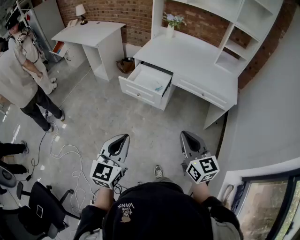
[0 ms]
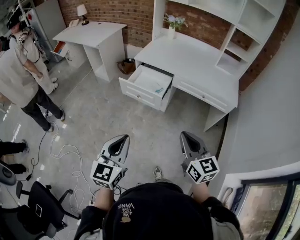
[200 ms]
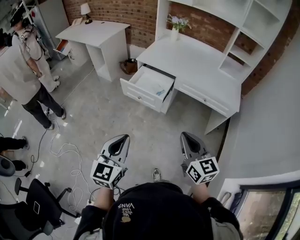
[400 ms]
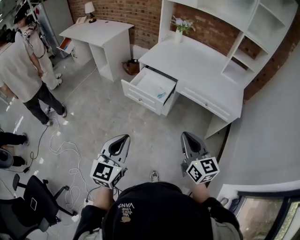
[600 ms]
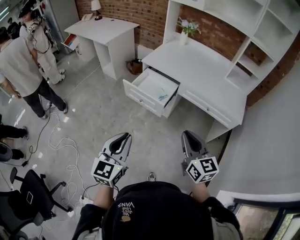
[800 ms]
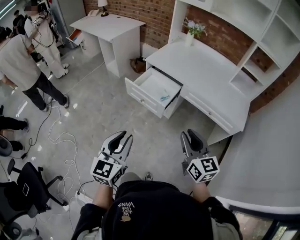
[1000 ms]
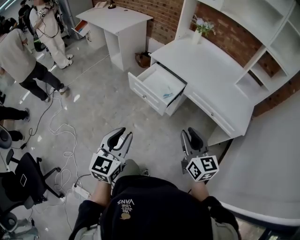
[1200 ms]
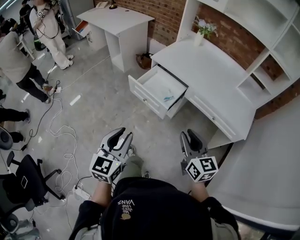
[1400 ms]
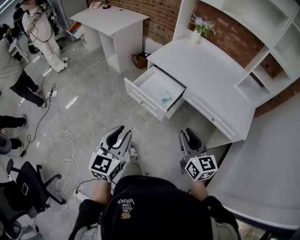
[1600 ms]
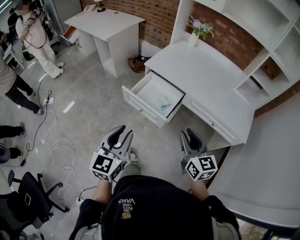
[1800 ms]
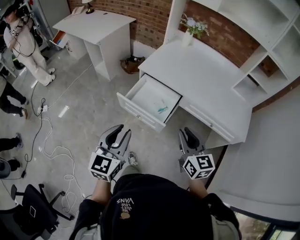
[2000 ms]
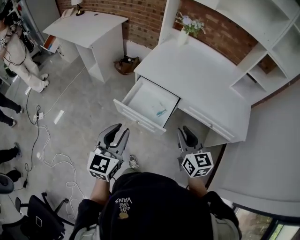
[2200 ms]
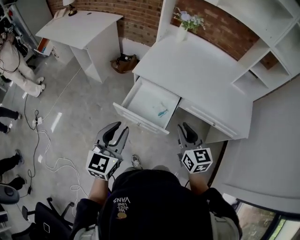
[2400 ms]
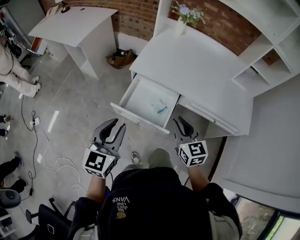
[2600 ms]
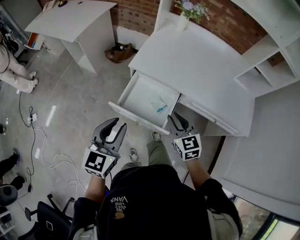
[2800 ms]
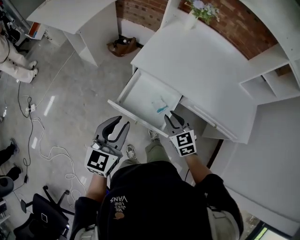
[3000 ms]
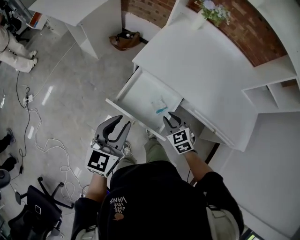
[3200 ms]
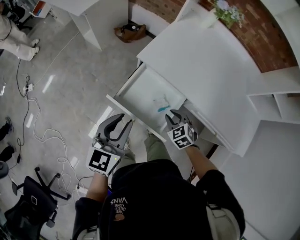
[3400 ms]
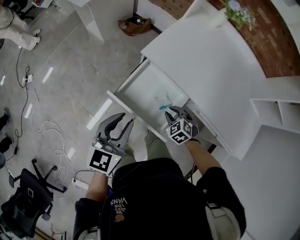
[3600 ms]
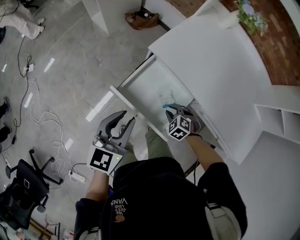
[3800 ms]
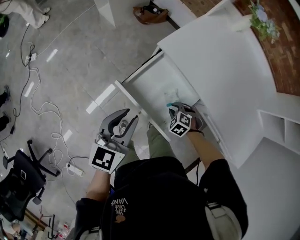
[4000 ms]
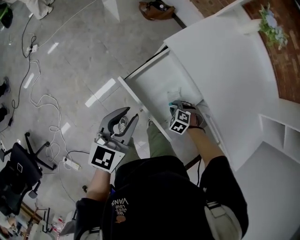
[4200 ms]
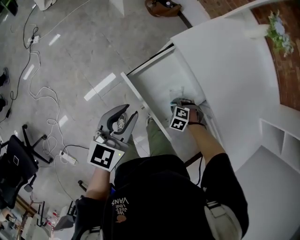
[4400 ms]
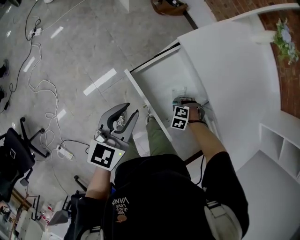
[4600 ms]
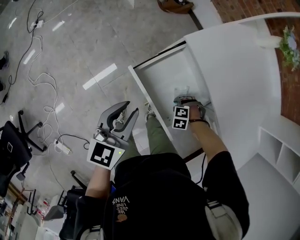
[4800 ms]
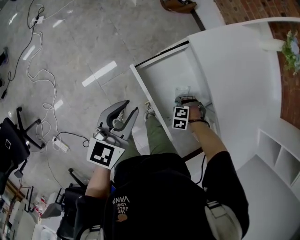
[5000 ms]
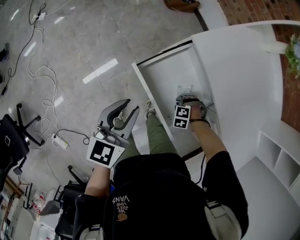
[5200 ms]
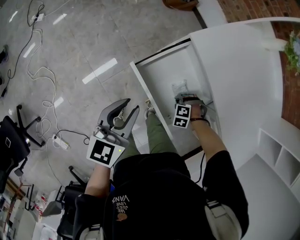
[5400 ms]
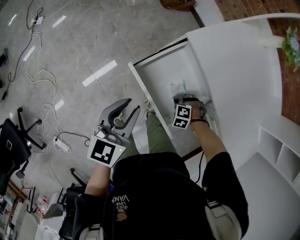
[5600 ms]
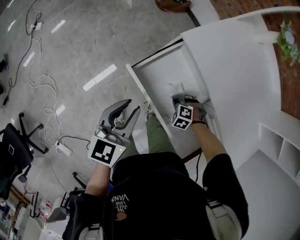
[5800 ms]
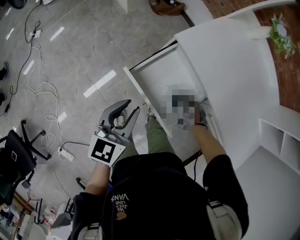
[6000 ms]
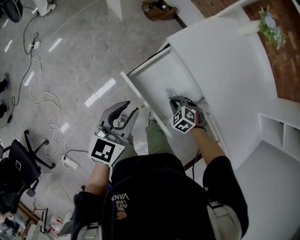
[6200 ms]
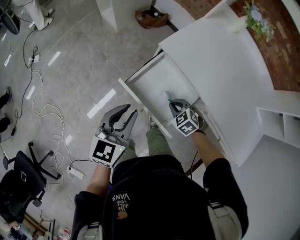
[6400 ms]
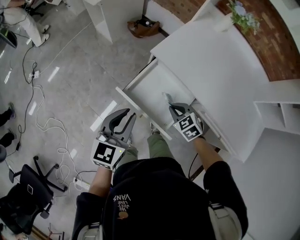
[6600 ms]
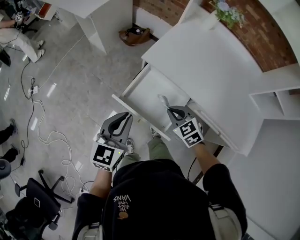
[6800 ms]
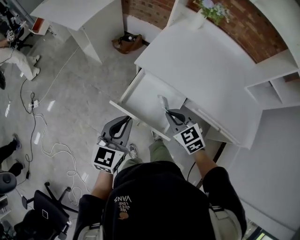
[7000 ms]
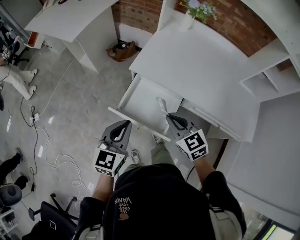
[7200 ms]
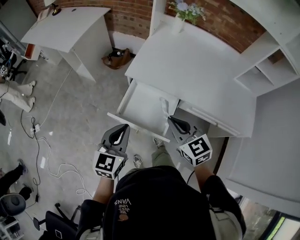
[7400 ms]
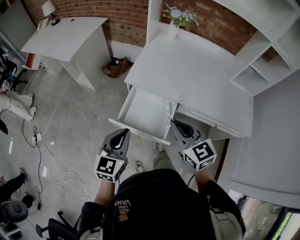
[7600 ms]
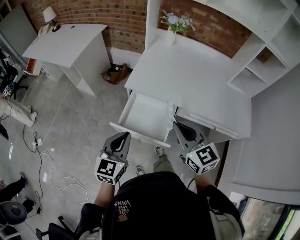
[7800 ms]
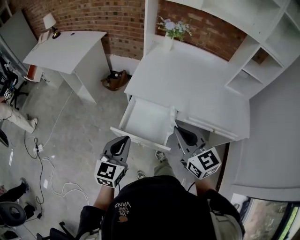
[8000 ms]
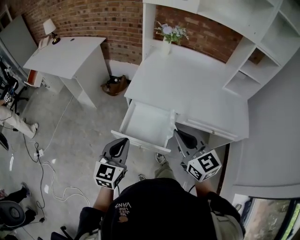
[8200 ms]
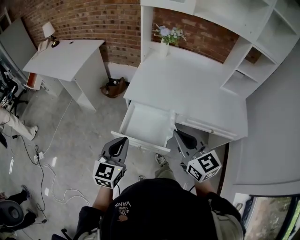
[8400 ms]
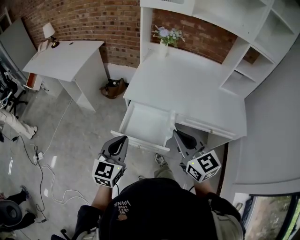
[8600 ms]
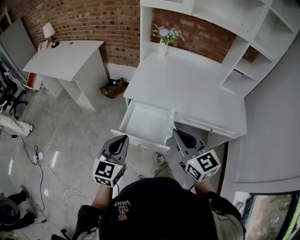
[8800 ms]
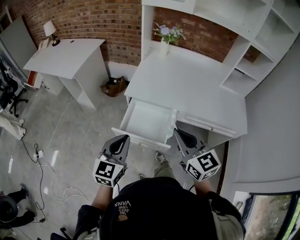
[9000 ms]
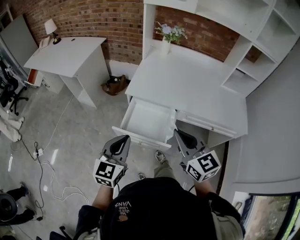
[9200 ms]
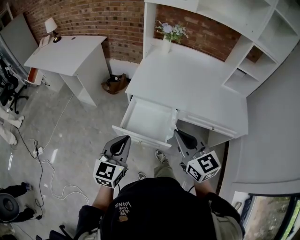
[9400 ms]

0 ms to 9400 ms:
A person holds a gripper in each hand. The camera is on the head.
0 ms to 1600 ms: The grippers both shift forward by approximately 20 cm. The right gripper opens its fingers; the left gripper opens up.
1600 ms to 3200 ms: The left gripper moves forward, roughly 35 cm. Meanwhile the right gripper heads forward and downward, covering approximately 40 cm, and tips its fingers downward by roughly 30 degrees.
3200 ms to 4800 ms: The right gripper travels downward by roughly 25 cm, and angles its fingers downward, by roughly 40 degrees; the left gripper moves downward, approximately 10 cm, and turns by roughly 30 degrees.
4800 ms to 6200 ms: The right gripper is displaced upward by roughly 10 cm, turns by some 40 degrees, and closes.
6200 ms to 7800 ms: The right gripper is displaced upward by some 35 cm, and angles its fingers upward, by roughly 60 degrees; the left gripper heads upward, covering roughly 10 cm, swivels roughly 20 degrees, and closes its fingers.
7800 ms to 9400 ms: The left gripper shifts by approximately 5 cm, while the right gripper is displaced backward by roughly 5 cm.

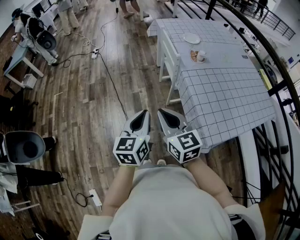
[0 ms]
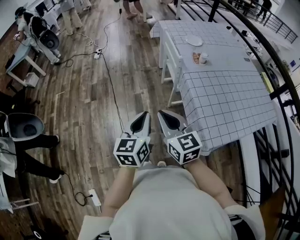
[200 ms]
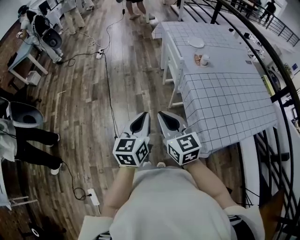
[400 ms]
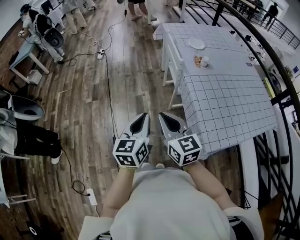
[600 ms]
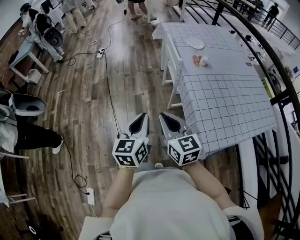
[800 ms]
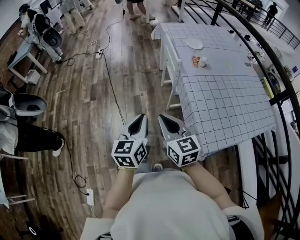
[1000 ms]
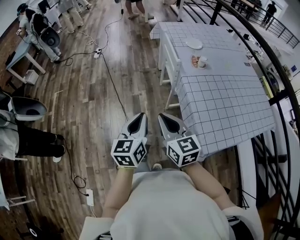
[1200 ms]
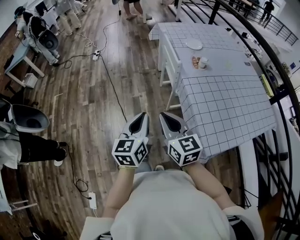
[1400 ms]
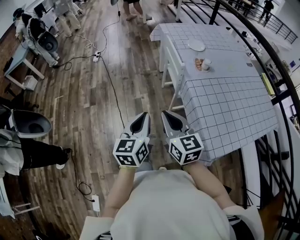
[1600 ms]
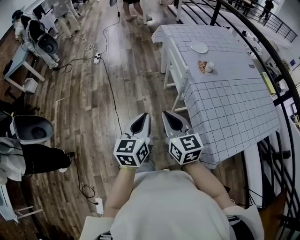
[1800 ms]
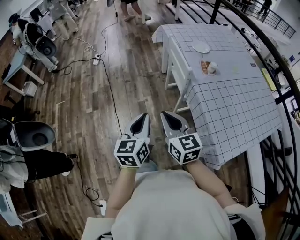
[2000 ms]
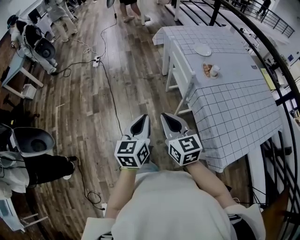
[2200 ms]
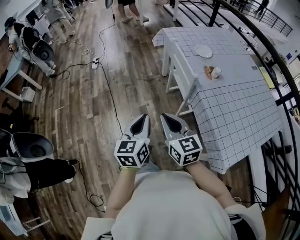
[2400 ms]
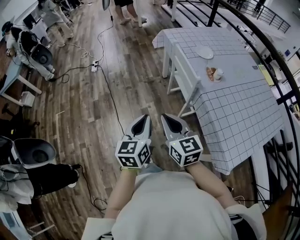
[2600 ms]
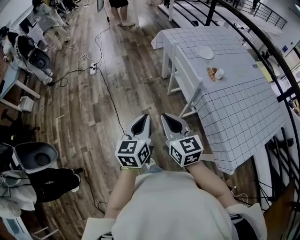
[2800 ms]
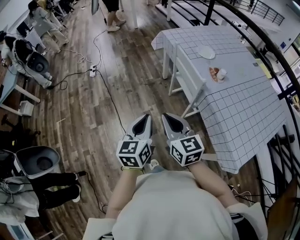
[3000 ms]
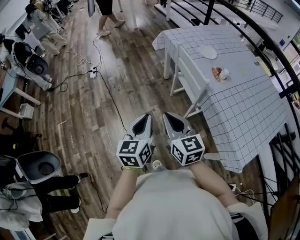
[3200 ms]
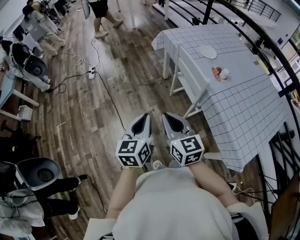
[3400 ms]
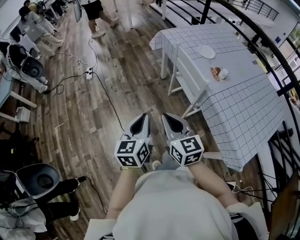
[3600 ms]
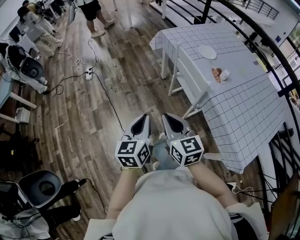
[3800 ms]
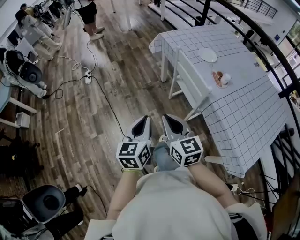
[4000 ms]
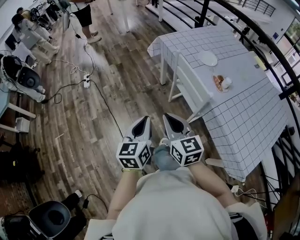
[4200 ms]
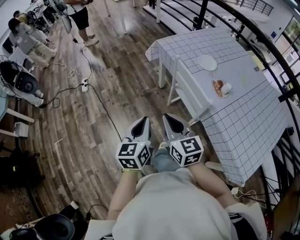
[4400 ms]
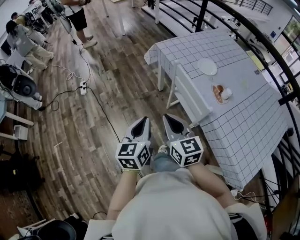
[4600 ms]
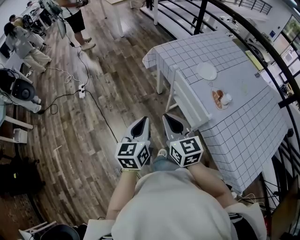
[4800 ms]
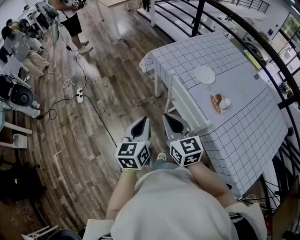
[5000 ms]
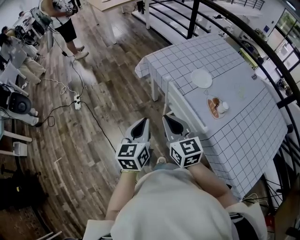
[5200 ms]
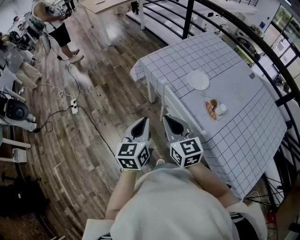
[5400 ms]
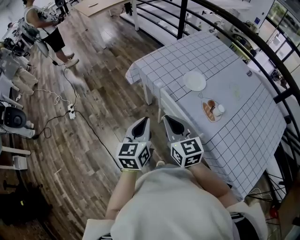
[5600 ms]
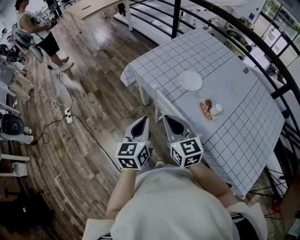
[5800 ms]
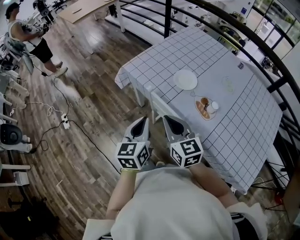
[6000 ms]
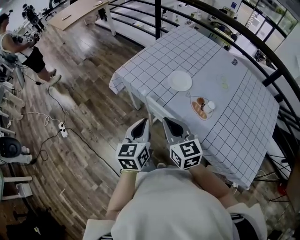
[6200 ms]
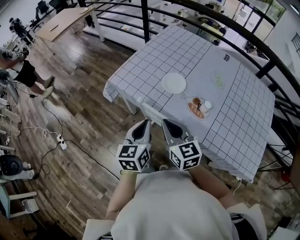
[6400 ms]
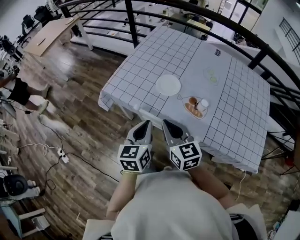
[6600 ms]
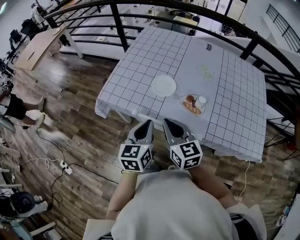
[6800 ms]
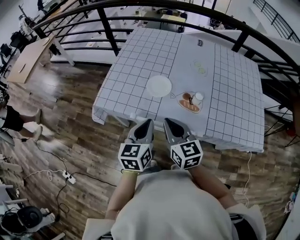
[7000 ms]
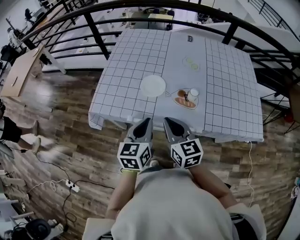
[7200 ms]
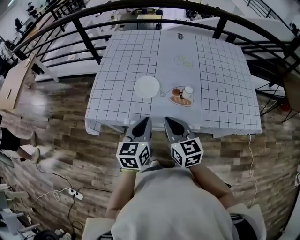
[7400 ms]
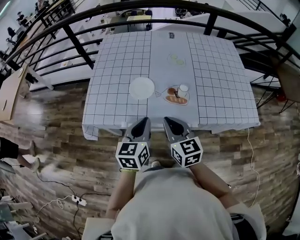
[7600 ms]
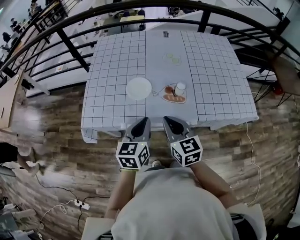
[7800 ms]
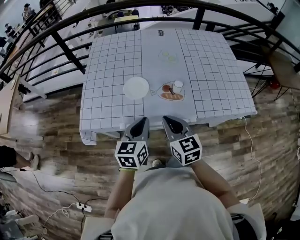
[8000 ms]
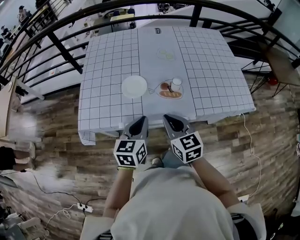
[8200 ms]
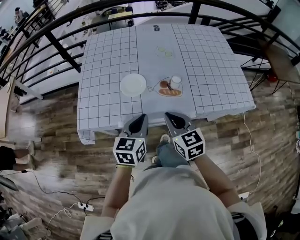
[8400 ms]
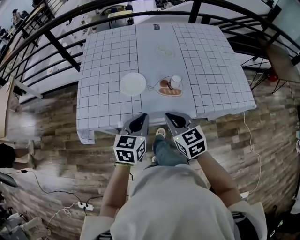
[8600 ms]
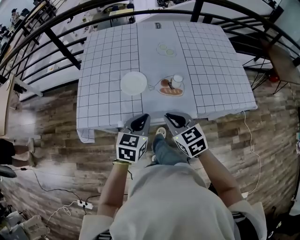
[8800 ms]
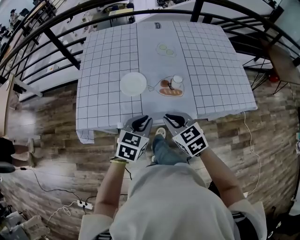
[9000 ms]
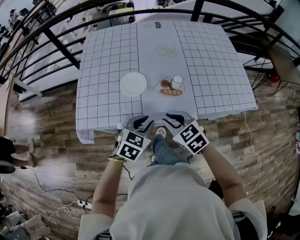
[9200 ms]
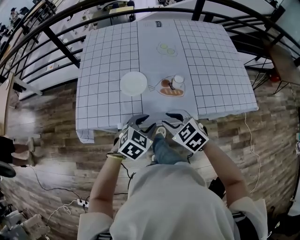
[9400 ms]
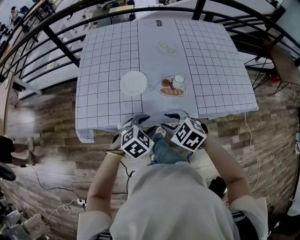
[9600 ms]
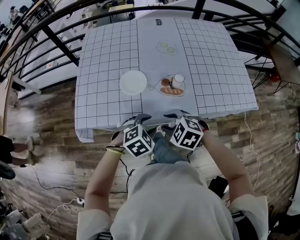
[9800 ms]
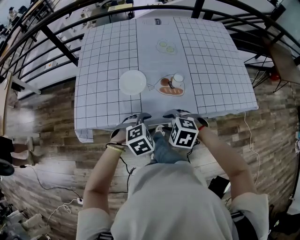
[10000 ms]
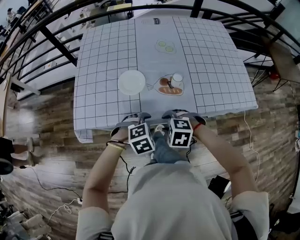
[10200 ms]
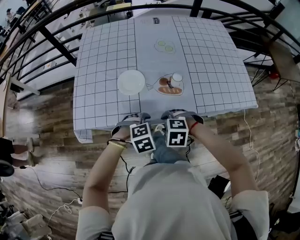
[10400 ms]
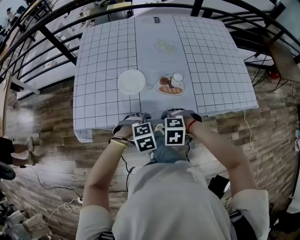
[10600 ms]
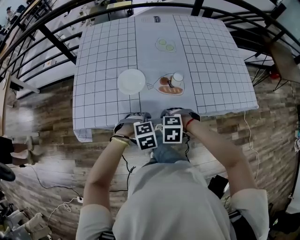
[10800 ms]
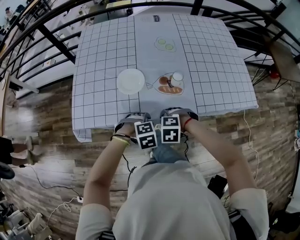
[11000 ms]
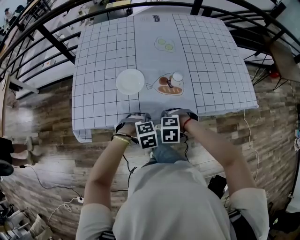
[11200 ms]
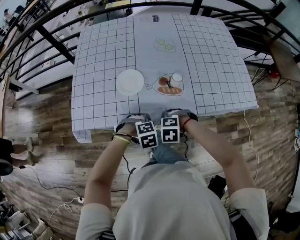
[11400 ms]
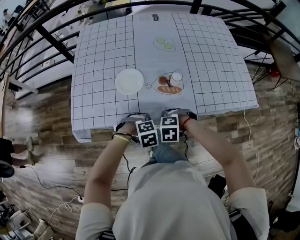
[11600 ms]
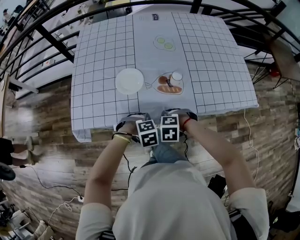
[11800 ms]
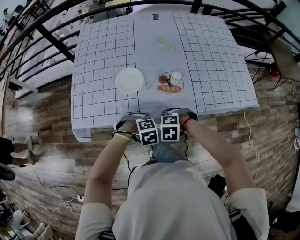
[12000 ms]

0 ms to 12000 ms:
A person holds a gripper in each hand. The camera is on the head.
0 ms to 1600 ms: The grippers both shift forward by about 5 cm.
1600 ms to 3000 ms: Both grippers travel together forward and to the left, approximately 20 cm.
3000 ms to 4400 ms: Both grippers move forward, some 15 cm.
4400 ms to 6000 ms: The grippers both shift forward and to the right by about 25 cm.
6000 ms to 7600 ms: The right gripper shifts by some 10 cm, and rotates some 40 degrees, while the left gripper shifts by about 15 cm, and turns by roughly 50 degrees.
7600 ms to 9000 ms: The grippers both shift downward by approximately 5 cm. The left gripper turns by about 30 degrees. Meanwhile the right gripper changes its angle by roughly 20 degrees.
9000 ms to 10400 ms: Both grippers travel together downward, approximately 10 cm. The left gripper angles its fingers downward, by roughly 30 degrees, and opens up. Meanwhile the right gripper points its fingers some 40 degrees further downward, and opens up.
10400 ms to 12000 ms: The two grippers go approximately 5 cm downward. The left gripper closes, while the right gripper closes.

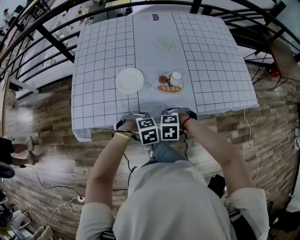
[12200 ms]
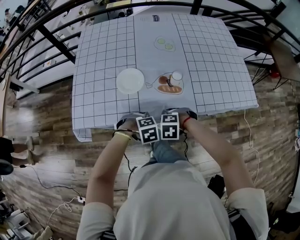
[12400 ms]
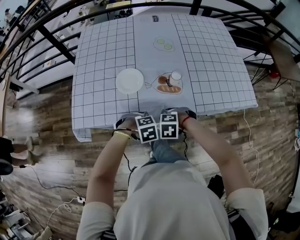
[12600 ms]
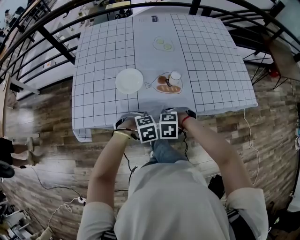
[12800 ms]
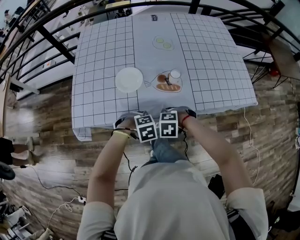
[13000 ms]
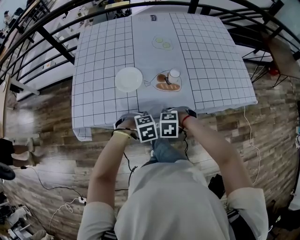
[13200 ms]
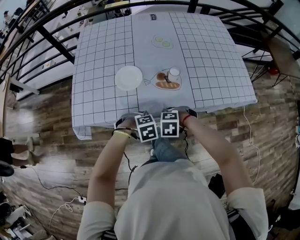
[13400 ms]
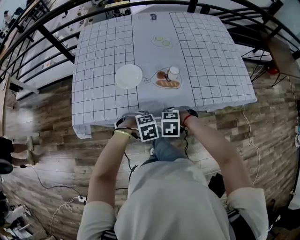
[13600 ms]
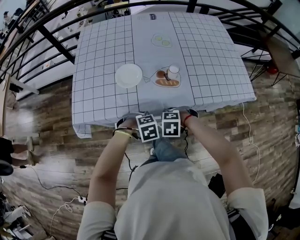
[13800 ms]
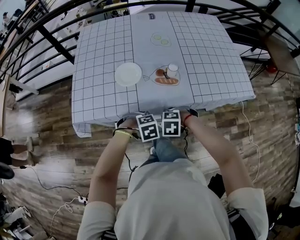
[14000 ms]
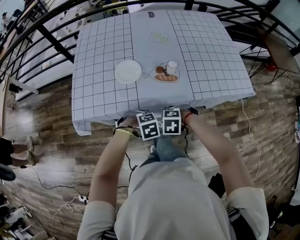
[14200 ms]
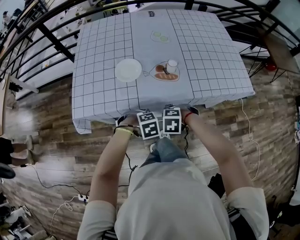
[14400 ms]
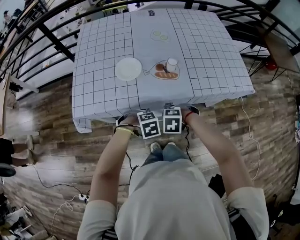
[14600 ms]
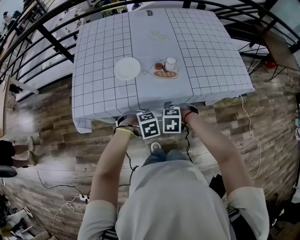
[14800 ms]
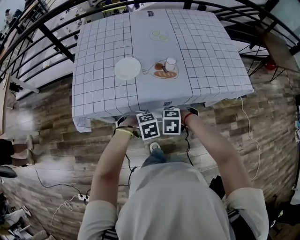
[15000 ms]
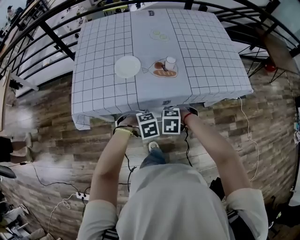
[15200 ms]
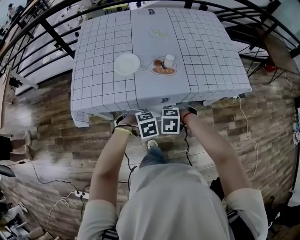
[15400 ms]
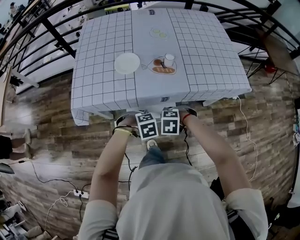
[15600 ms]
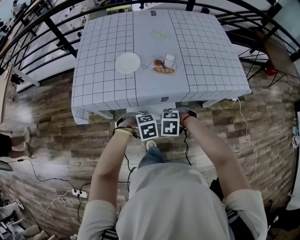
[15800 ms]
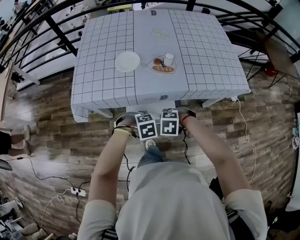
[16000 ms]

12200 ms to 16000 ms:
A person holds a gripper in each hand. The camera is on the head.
12200 ms to 13400 ms: The grippers move only a little.
13400 ms to 14800 ms: The right gripper ends up roughly 5 cm from where it was. The left gripper shifts by about 5 cm.
14800 ms to 16000 ms: The left gripper moves roughly 5 cm. The right gripper shifts by approximately 5 cm.
